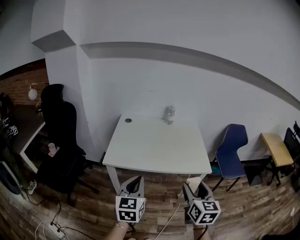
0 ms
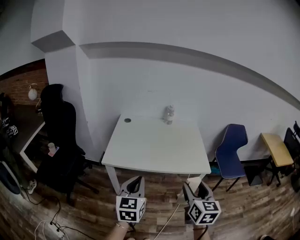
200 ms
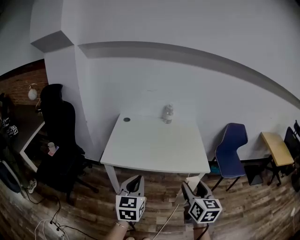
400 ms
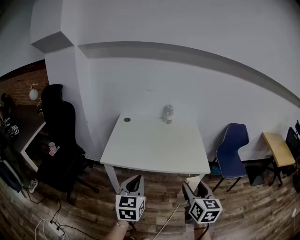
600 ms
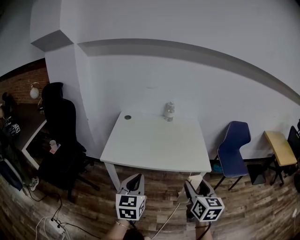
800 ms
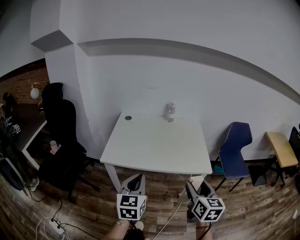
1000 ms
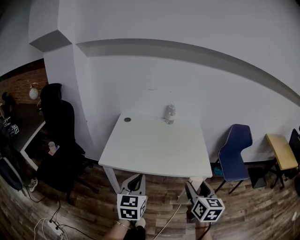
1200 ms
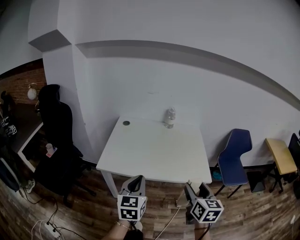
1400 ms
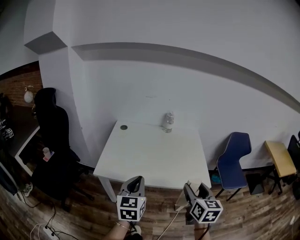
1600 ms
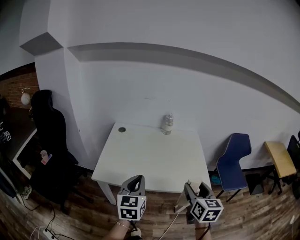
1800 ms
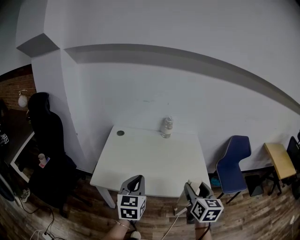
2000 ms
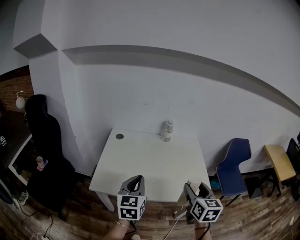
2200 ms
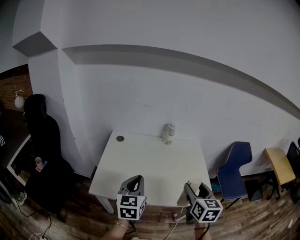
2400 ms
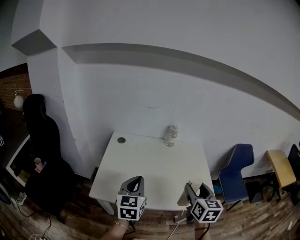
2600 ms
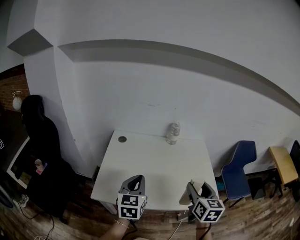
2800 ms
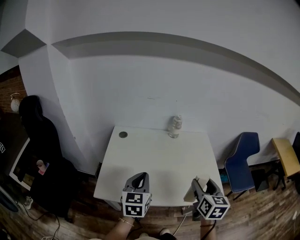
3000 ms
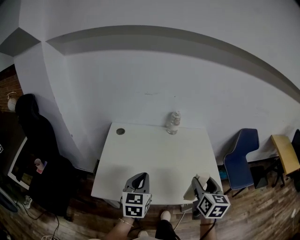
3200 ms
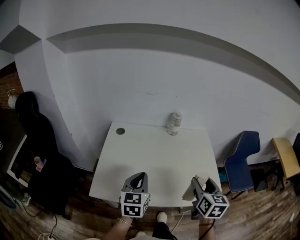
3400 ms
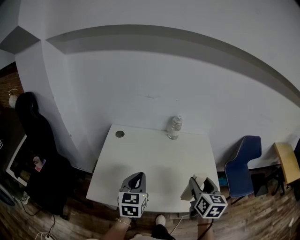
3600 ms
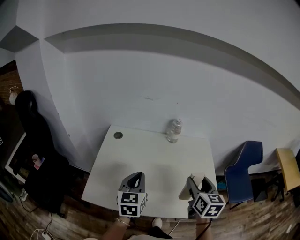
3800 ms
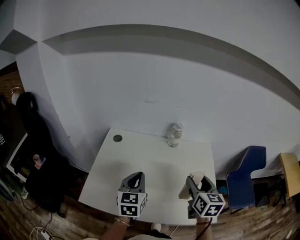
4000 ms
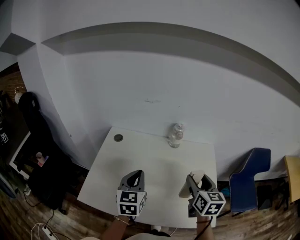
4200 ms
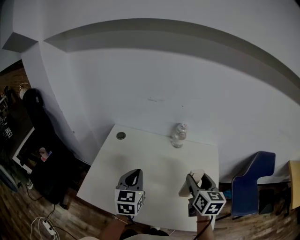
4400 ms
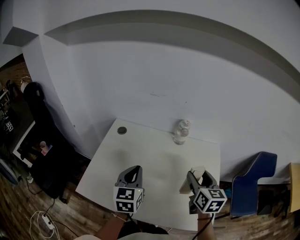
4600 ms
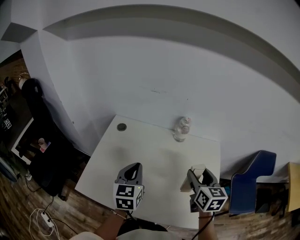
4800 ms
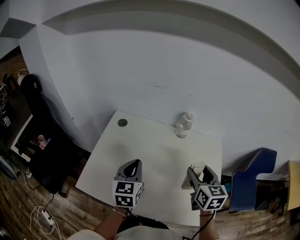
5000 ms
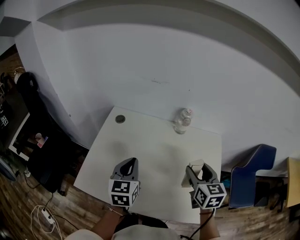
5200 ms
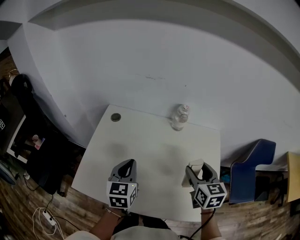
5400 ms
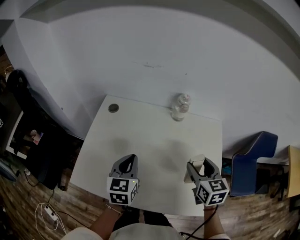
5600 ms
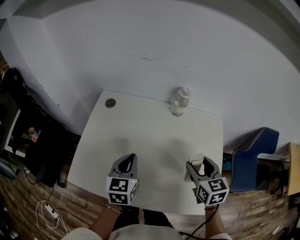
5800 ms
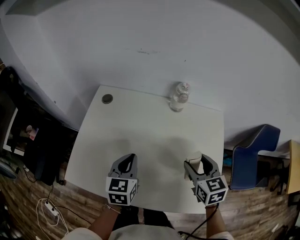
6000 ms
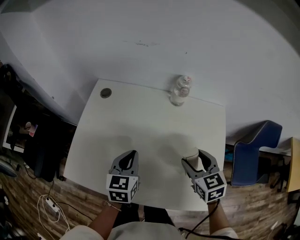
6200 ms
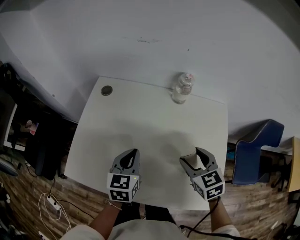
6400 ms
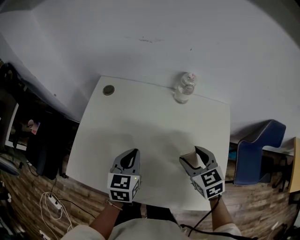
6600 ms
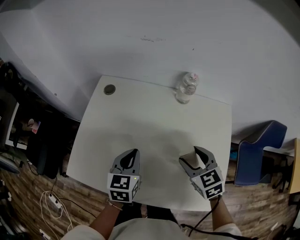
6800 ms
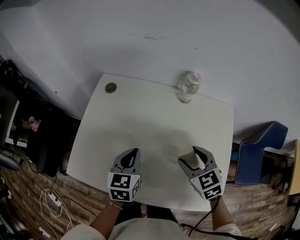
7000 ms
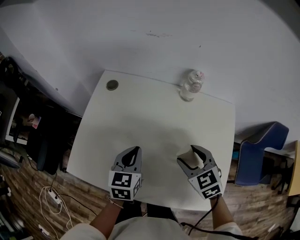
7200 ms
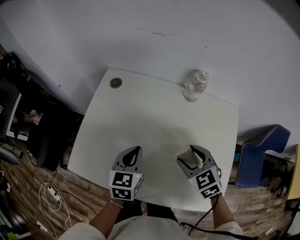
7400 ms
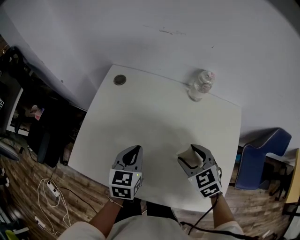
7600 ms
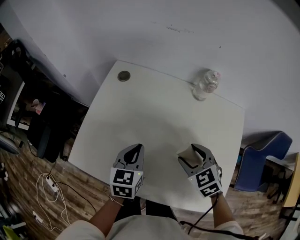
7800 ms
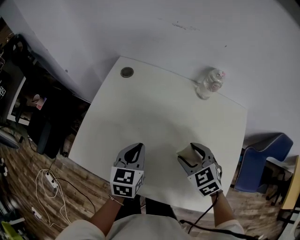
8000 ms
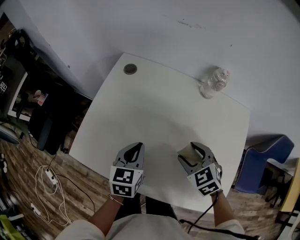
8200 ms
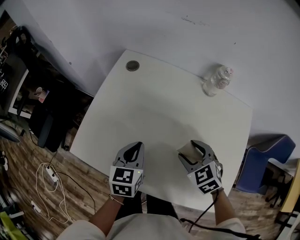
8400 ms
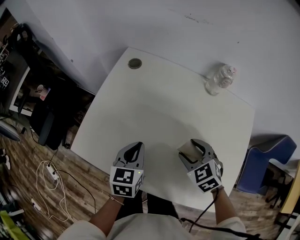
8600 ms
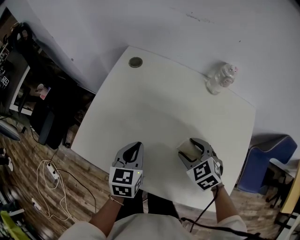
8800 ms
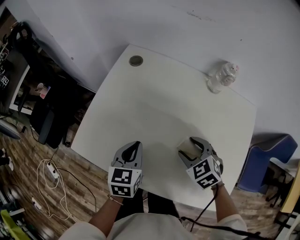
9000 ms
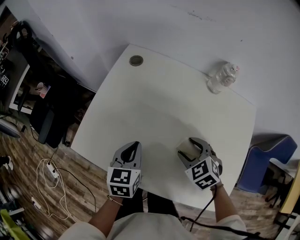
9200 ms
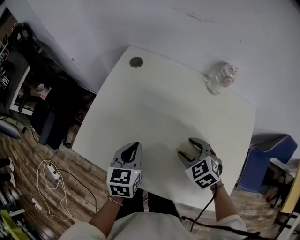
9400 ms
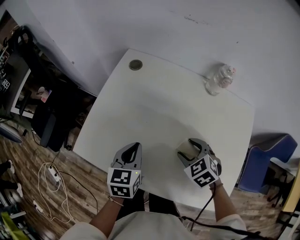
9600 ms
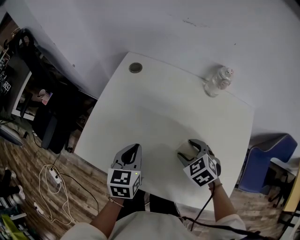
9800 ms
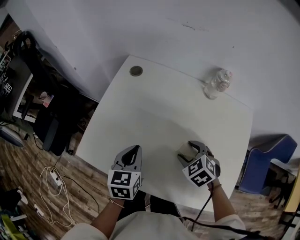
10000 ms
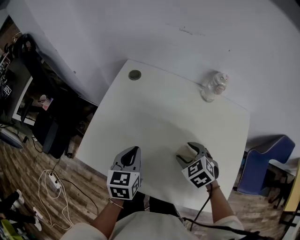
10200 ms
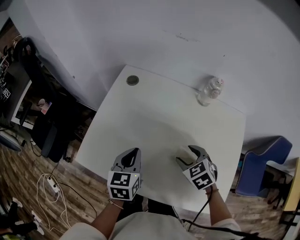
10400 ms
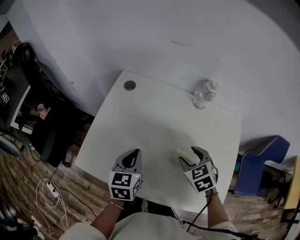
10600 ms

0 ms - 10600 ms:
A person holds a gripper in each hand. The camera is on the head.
0 ms - 1600 ms: Both grippers travel together forward, roughly 10 cm.
1600 ms - 3000 ms: The two grippers go about 15 cm forward.
3000 ms - 4600 ms: The left gripper heads forward, covering some 10 cm, while the right gripper is displaced forward by some 20 cm.
4600 ms - 6000 ms: Both grippers move downward, some 10 cm. The right gripper changes its angle by roughly 20 degrees.
6000 ms - 7600 ms: The right gripper heads to the left and downward, covering some 10 cm, and changes its angle by about 30 degrees.
7600 ms - 9000 ms: The right gripper shifts some 5 cm downward, while the left gripper changes place by approximately 5 cm.
9000 ms - 10600 ms: The right gripper changes place by roughly 5 cm.

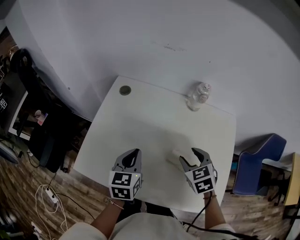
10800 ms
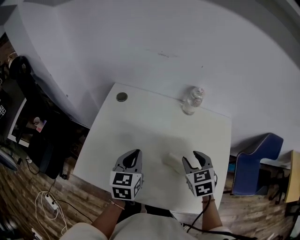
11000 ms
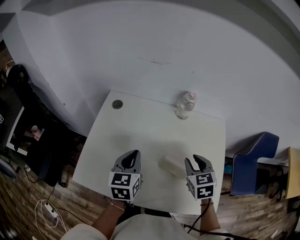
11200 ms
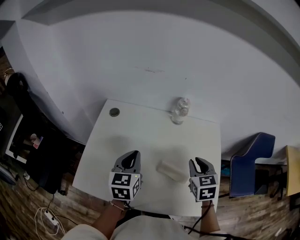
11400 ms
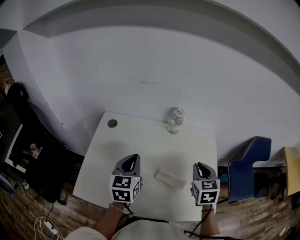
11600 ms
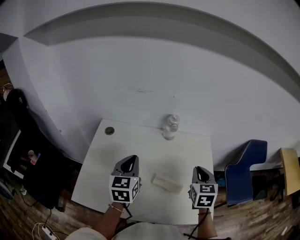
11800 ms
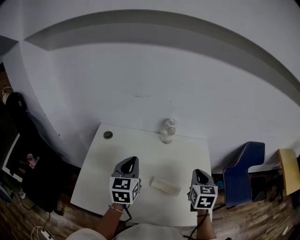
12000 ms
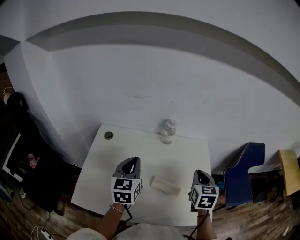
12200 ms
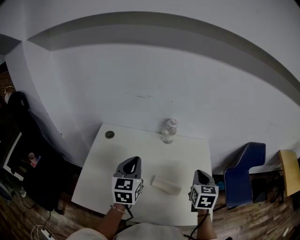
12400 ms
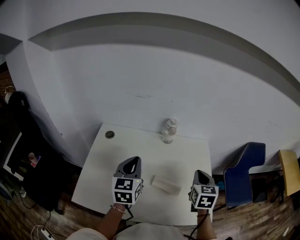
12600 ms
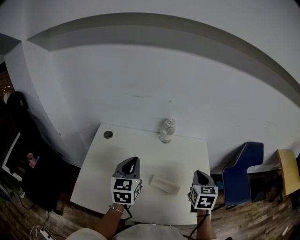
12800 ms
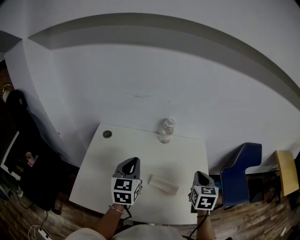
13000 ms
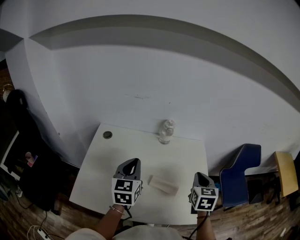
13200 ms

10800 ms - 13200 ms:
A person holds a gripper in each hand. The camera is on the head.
10800 ms - 12000 ms: The right gripper heads to the right and upward, covering about 15 cm, swivels roughly 40 degrees, and closes. The left gripper travels upward and forward by approximately 15 cm.
12000 ms - 13200 ms: The grippers make only small movements.

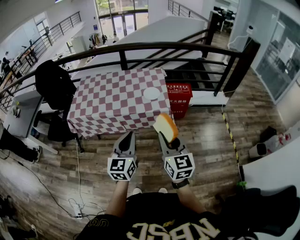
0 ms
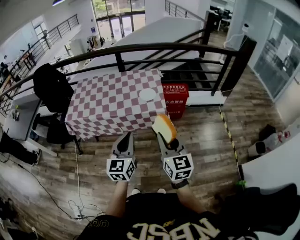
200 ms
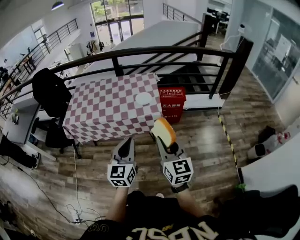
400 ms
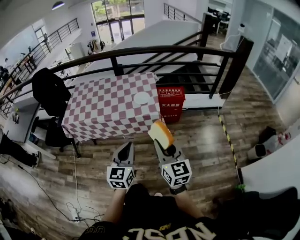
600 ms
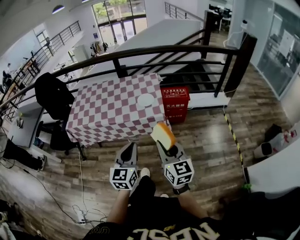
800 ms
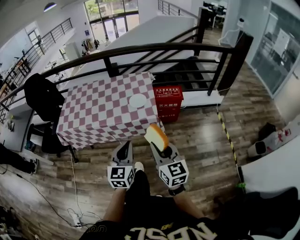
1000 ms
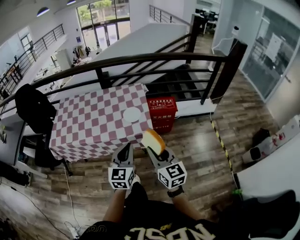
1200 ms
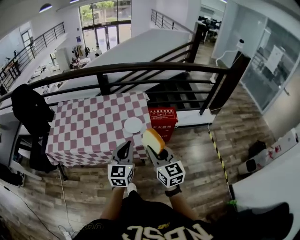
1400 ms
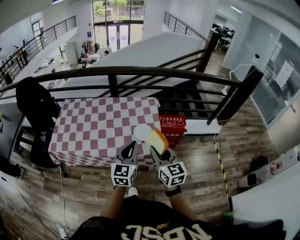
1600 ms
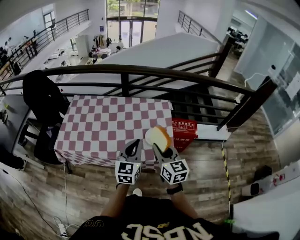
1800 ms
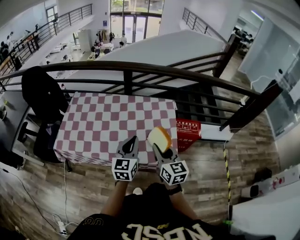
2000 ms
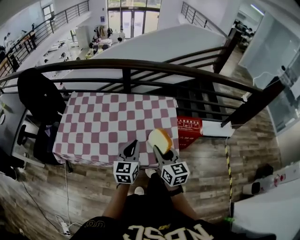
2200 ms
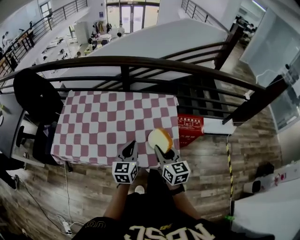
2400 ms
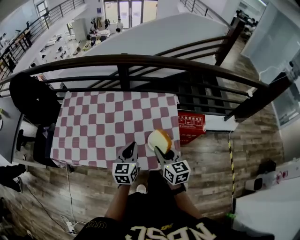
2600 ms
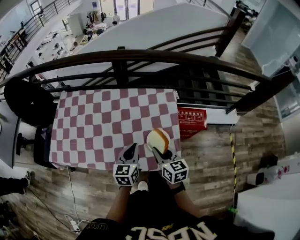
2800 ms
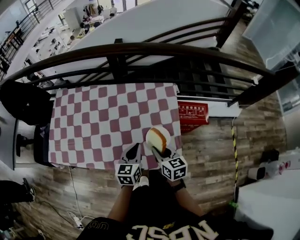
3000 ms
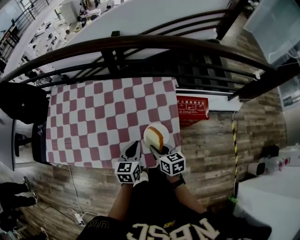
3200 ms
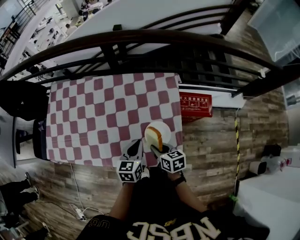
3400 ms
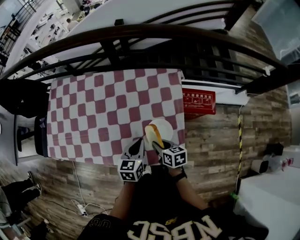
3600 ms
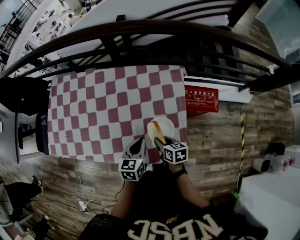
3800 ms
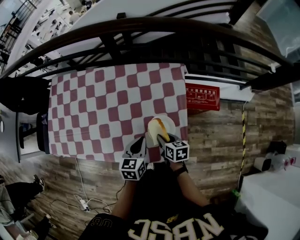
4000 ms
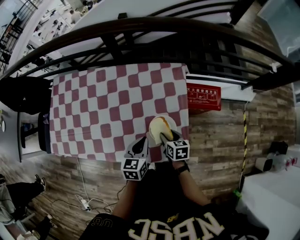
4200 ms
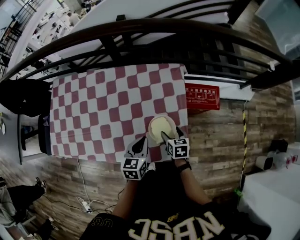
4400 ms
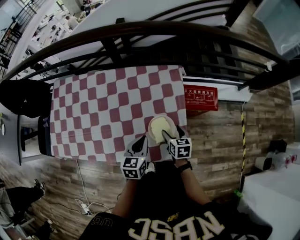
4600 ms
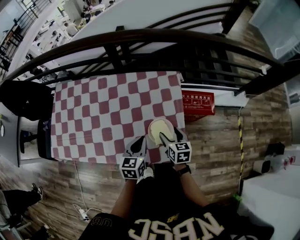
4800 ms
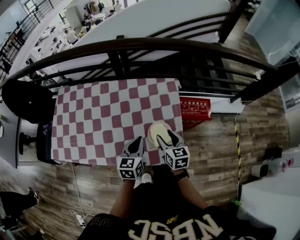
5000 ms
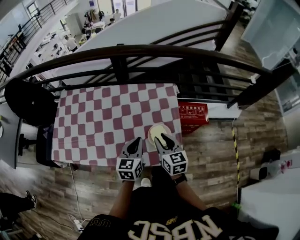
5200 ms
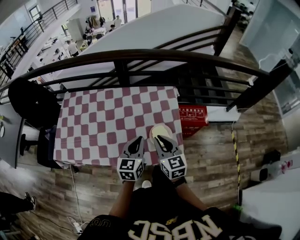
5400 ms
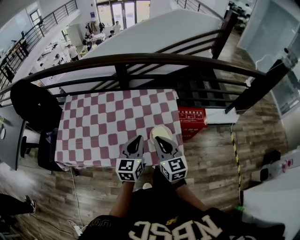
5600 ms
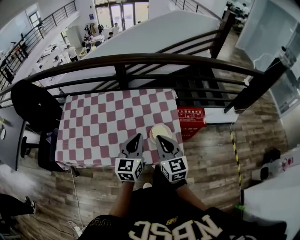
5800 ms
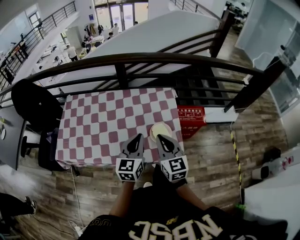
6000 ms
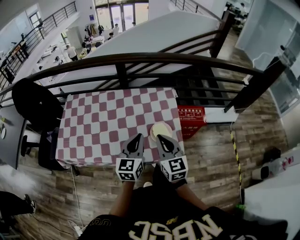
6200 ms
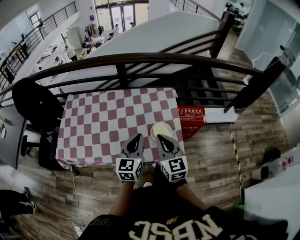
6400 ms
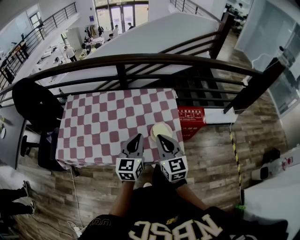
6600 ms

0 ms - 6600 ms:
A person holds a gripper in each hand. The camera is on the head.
0 ms - 1600 ms: Both grippers travel together forward, some 25 cm.
1600 ms - 3200 ms: Both grippers travel together downward and forward, approximately 30 cm. The left gripper changes its angle by some 30 degrees; the right gripper swivels roughly 40 degrees.
3200 ms - 5000 ms: The right gripper travels downward and back again, approximately 10 cm each way, and opens.
5000 ms - 6600 ms: Both grippers move upward and backward, approximately 15 cm. The right gripper changes its angle by approximately 30 degrees, and closes its fingers.

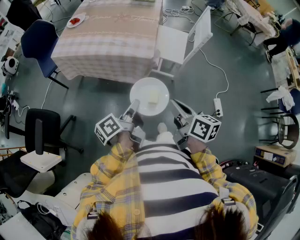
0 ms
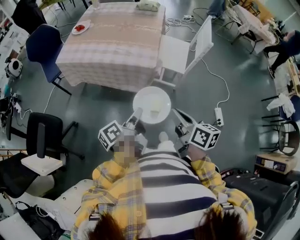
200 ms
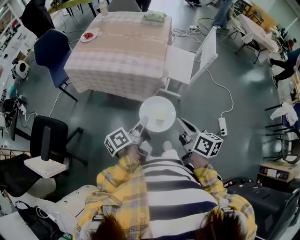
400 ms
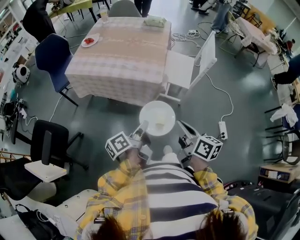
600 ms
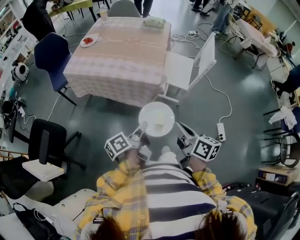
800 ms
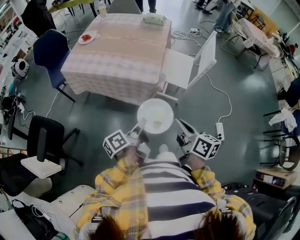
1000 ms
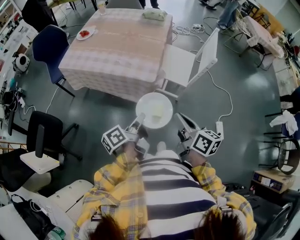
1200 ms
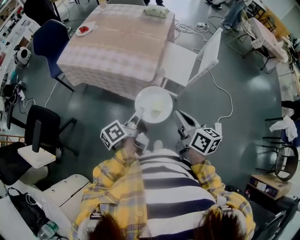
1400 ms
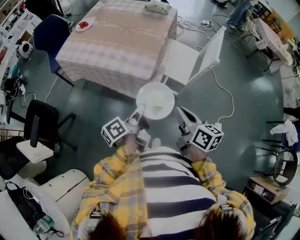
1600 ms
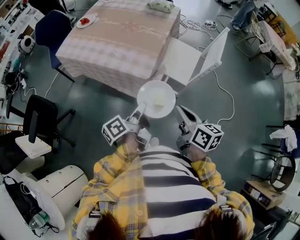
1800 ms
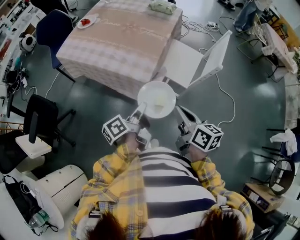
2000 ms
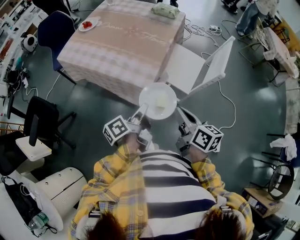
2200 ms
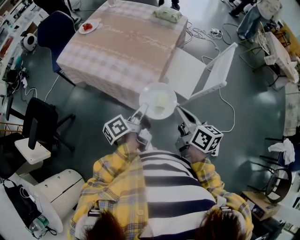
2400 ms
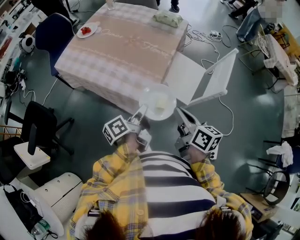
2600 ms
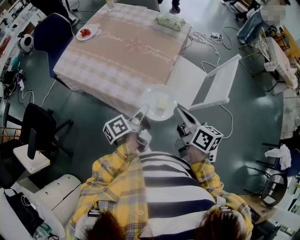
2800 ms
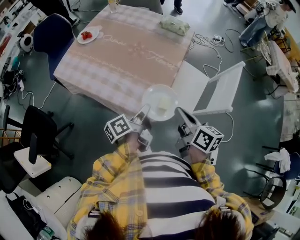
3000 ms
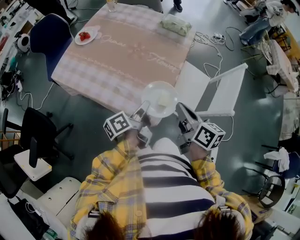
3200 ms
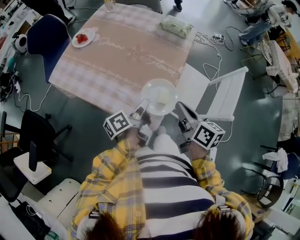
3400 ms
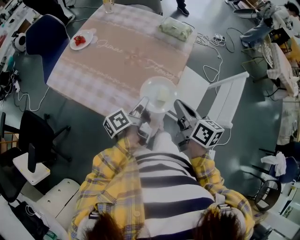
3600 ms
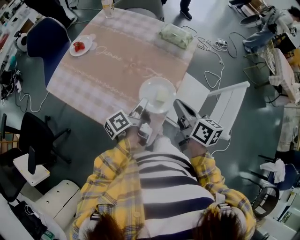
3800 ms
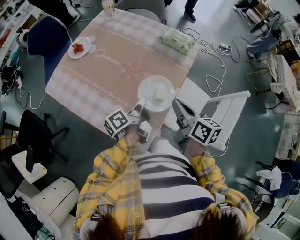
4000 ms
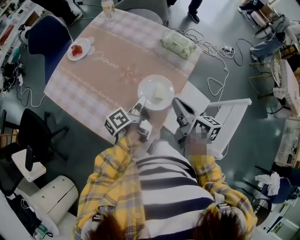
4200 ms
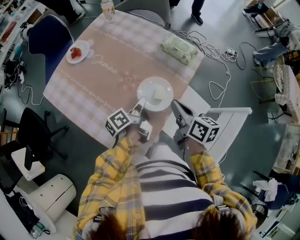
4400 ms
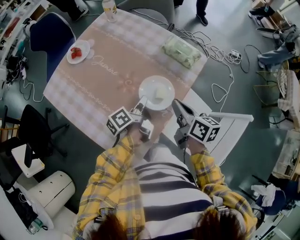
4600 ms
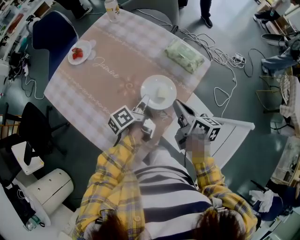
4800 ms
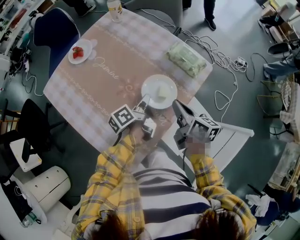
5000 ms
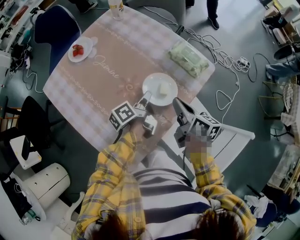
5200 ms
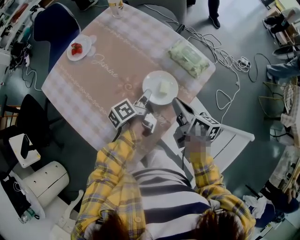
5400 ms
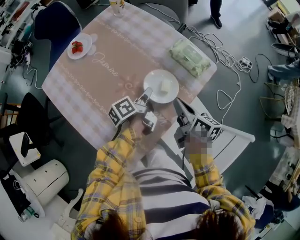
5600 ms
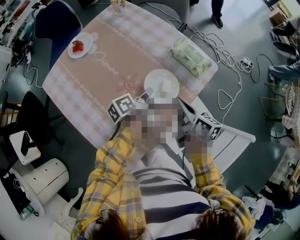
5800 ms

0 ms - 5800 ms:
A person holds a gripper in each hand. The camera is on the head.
0 ms - 1400 ms: The right gripper ends up approximately 10 cm from where it was.
1400 ms - 2800 ms: The right gripper changes place by approximately 20 cm.
2800 ms - 4400 ms: The right gripper changes place by about 30 cm.
4400 ms - 5800 ms: The right gripper ends up some 10 cm from where it was.
